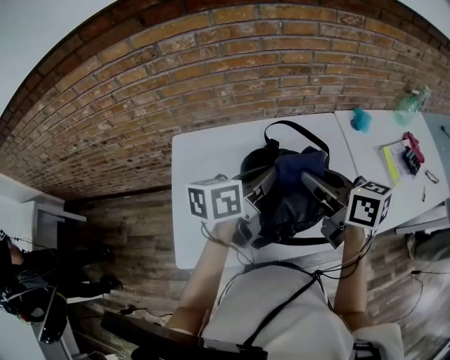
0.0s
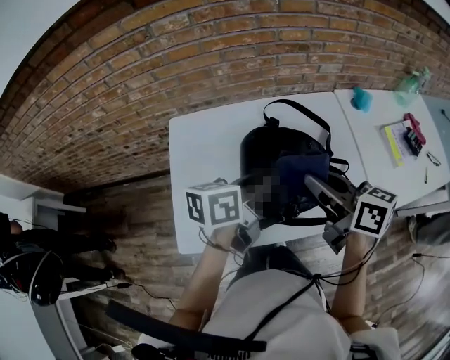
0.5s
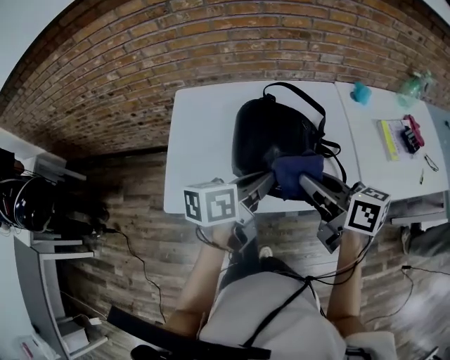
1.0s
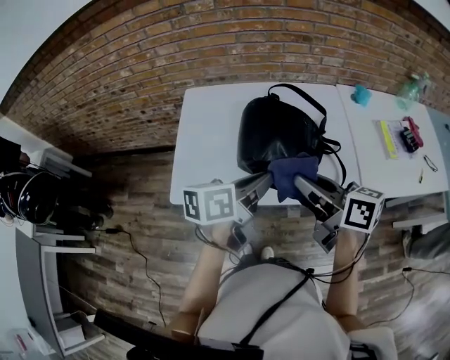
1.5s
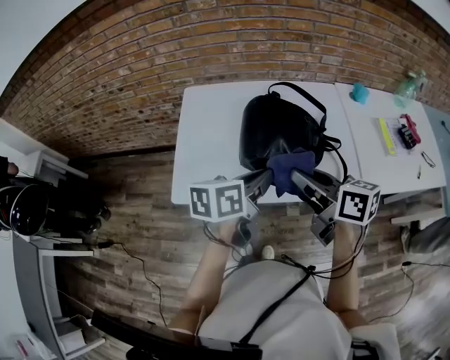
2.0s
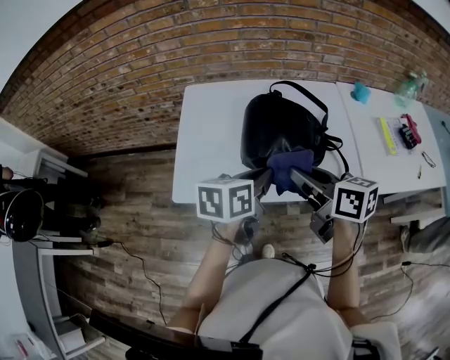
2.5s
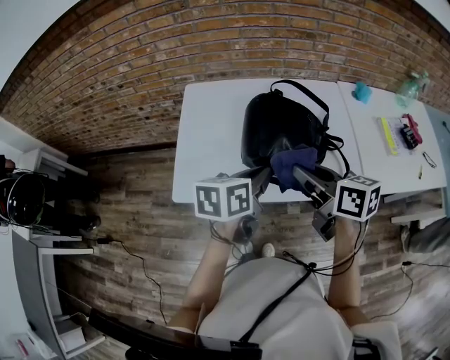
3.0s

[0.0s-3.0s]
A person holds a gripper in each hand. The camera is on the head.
0.0s to 1.5s: The two grippers go roughly 20 cm backward.
1.5s to 3.0s: There are only small adjustments of the grippers.

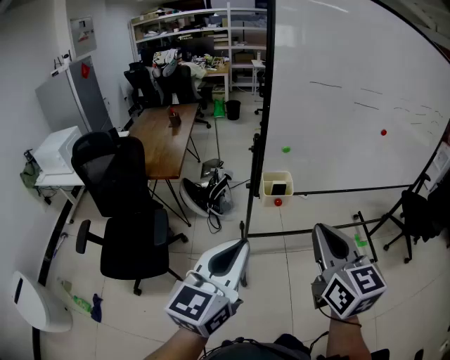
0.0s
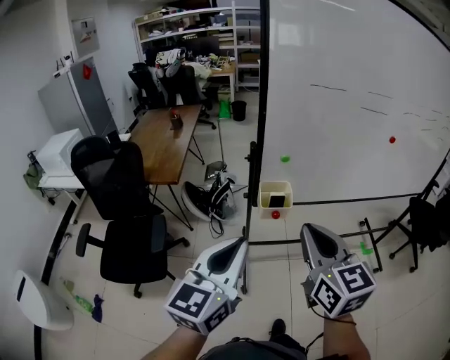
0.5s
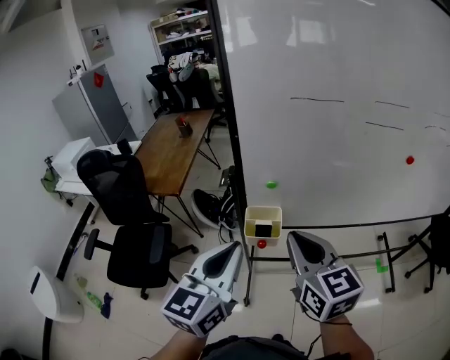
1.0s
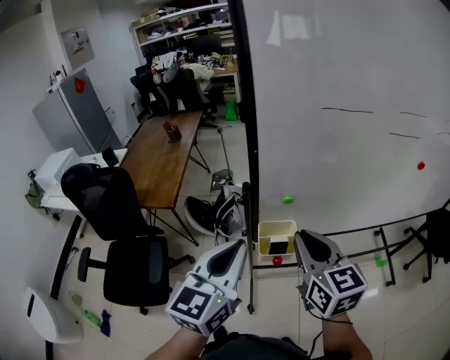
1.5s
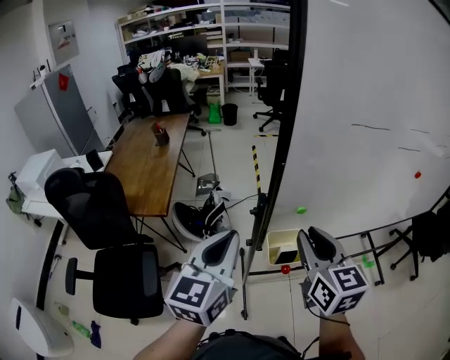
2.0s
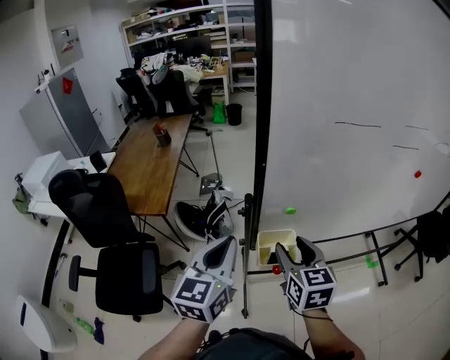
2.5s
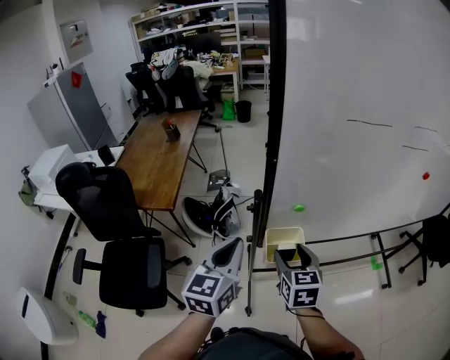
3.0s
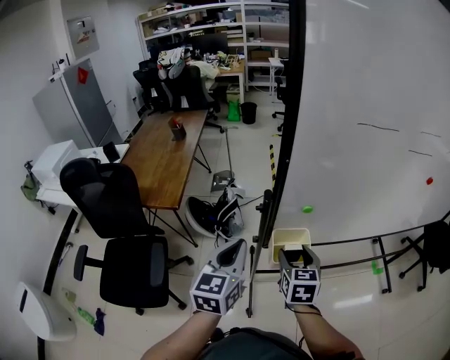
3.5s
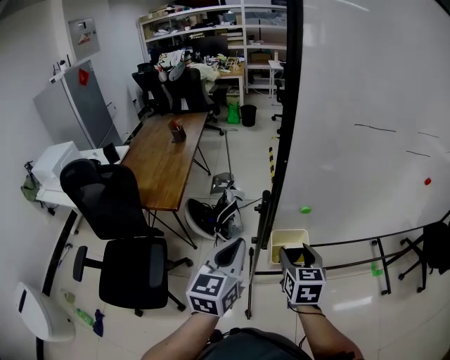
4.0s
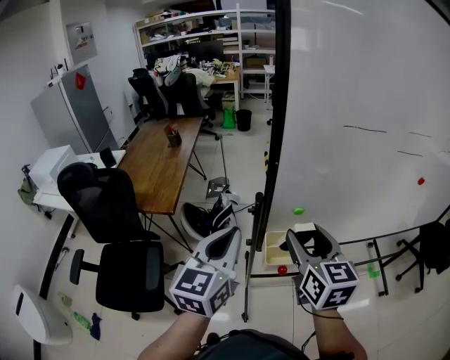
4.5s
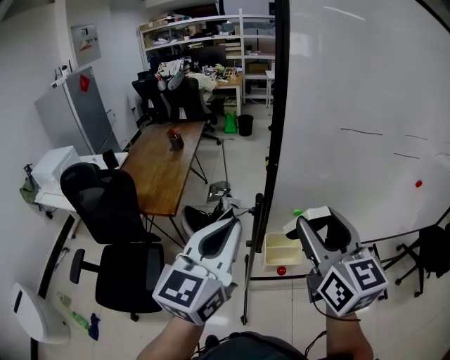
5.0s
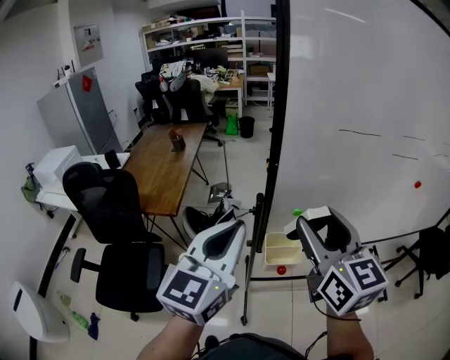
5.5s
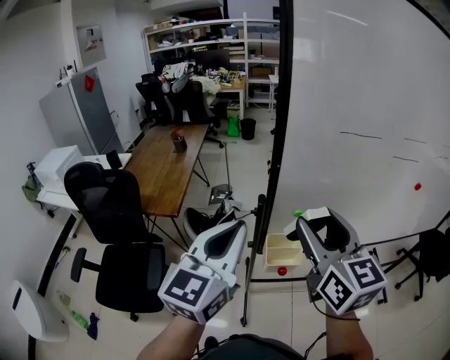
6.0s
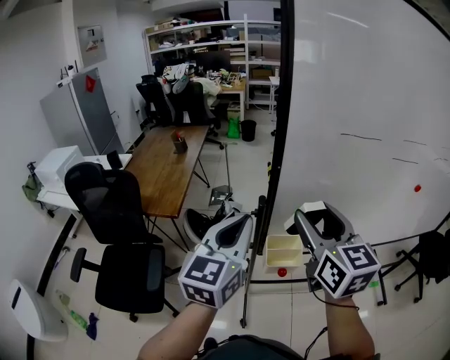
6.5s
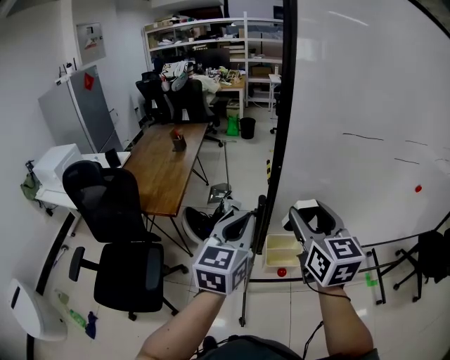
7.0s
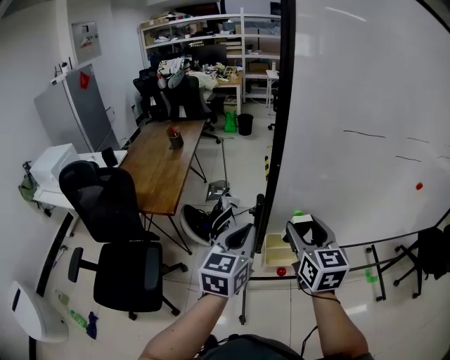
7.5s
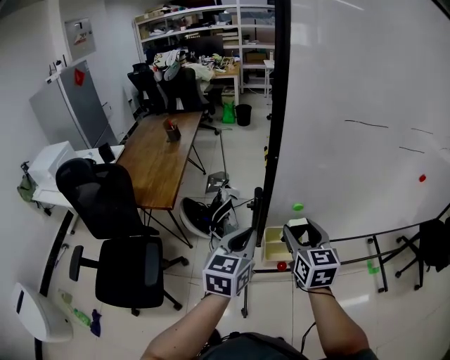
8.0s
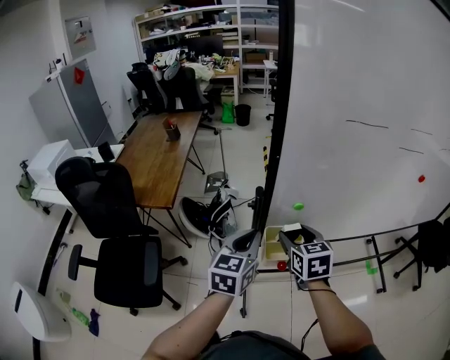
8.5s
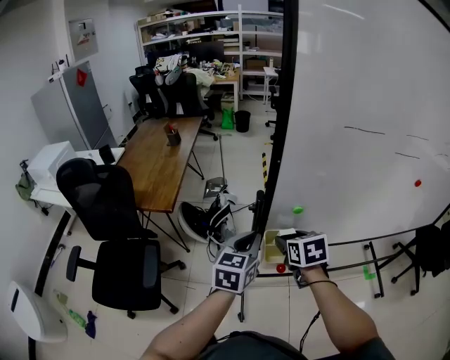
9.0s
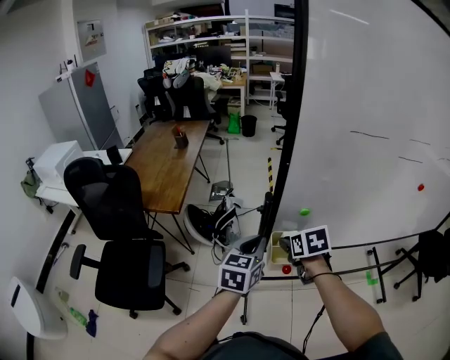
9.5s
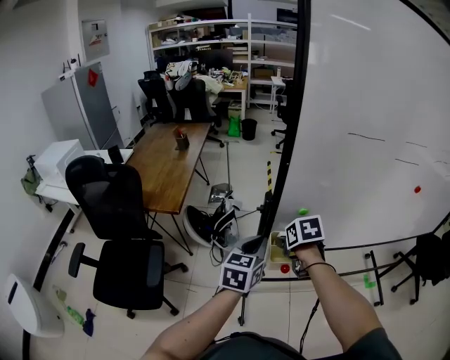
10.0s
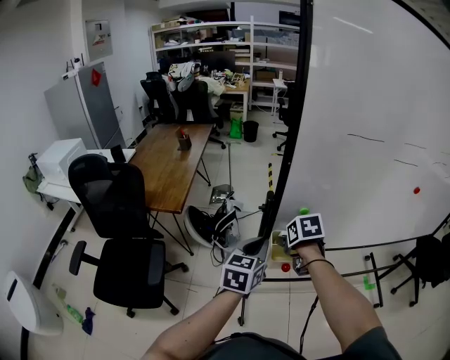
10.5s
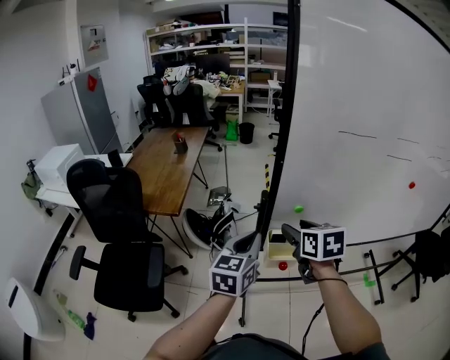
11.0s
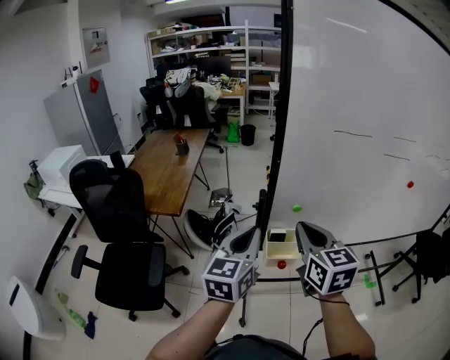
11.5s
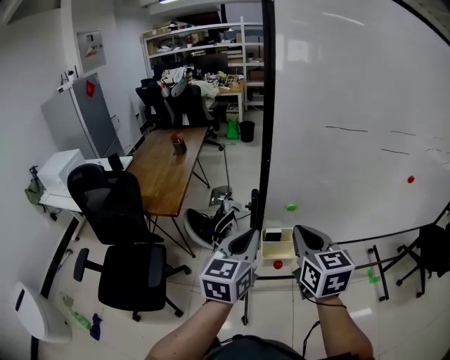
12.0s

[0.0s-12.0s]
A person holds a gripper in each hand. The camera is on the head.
0.0s to 2.0s: The two grippers travel together, forward, roughly 40 cm.
2.0s to 4.0s: The right gripper shifts about 15 cm downward, and opens. Meanwhile the left gripper moves downward, approximately 10 cm.
4.0s to 6.0s: The left gripper is displaced upward by some 15 cm. The right gripper is displaced upward by some 25 cm, and rotates approximately 30 degrees.
6.0s to 8.0s: Both grippers travel together downward and forward, about 20 cm.
8.0s to 10.0s: The right gripper shifts some 10 cm downward, and points its fingers approximately 40 degrees further downward.
10.0s to 12.0s: The right gripper shifts some 20 cm upward and backward, points its fingers approximately 40 degrees further upward, and closes. The left gripper is displaced upward and backward by about 10 cm.

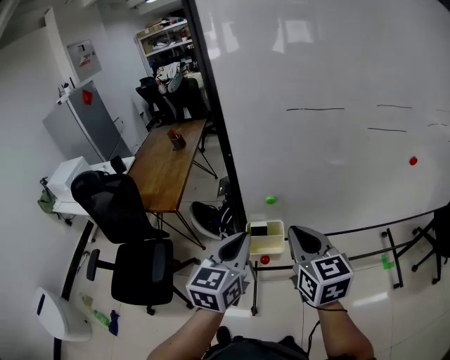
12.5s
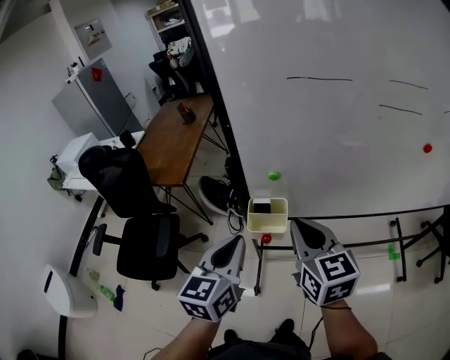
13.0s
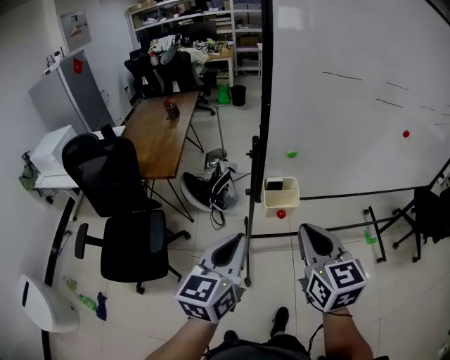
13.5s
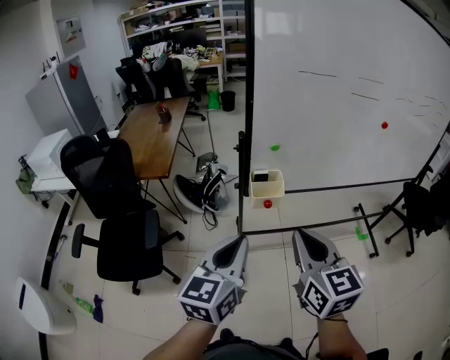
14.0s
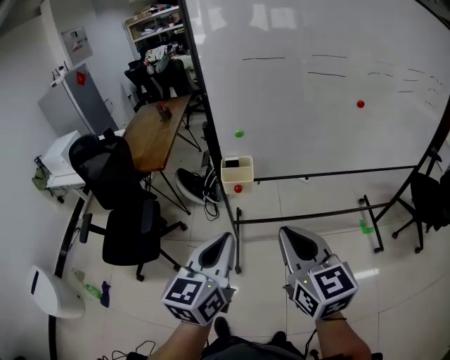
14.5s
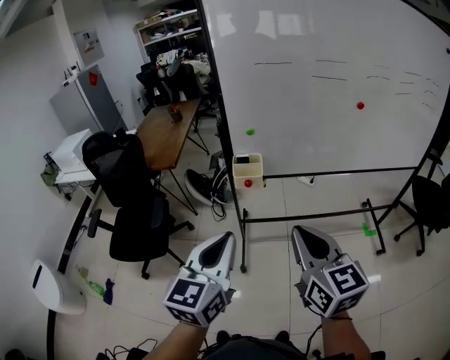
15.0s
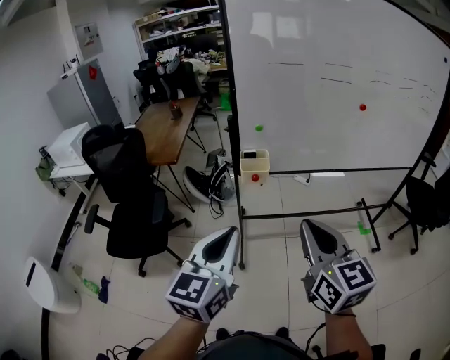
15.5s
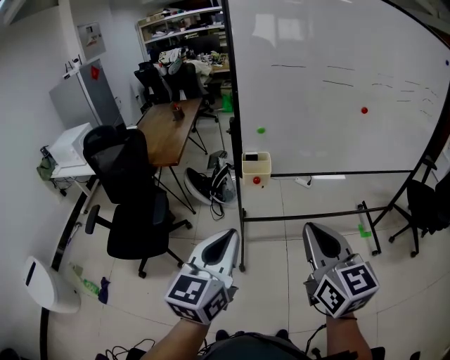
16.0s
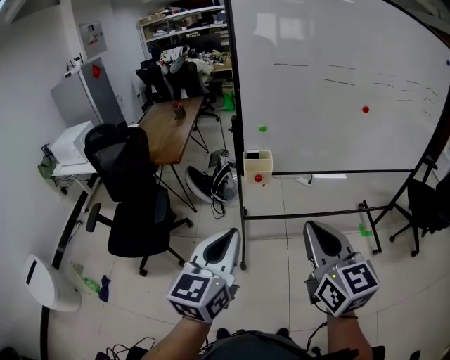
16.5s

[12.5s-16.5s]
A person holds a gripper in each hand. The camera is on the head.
12.5s to 14.5s: The grippers both shift backward by about 35 cm.
14.5s to 16.5s: Both grippers move backward and to the left, approximately 15 cm.

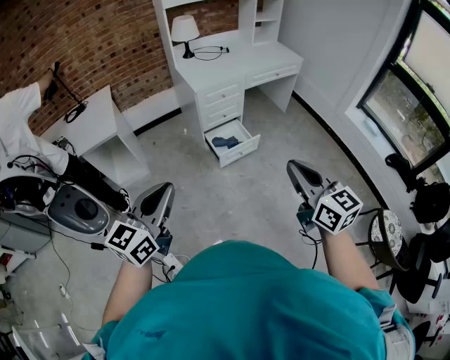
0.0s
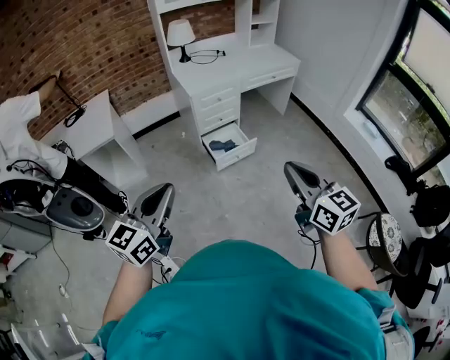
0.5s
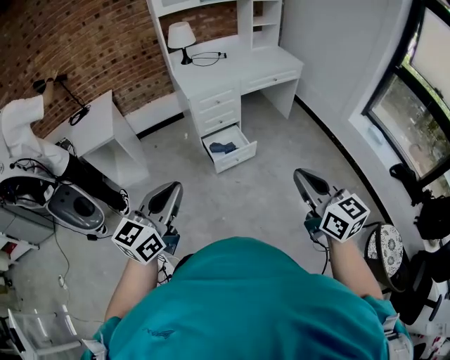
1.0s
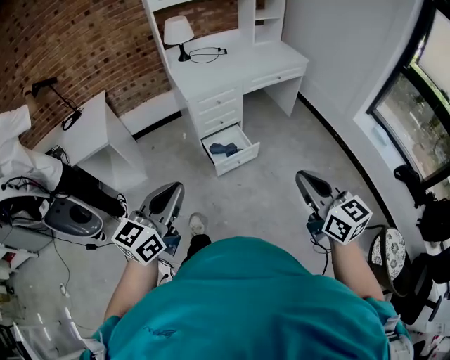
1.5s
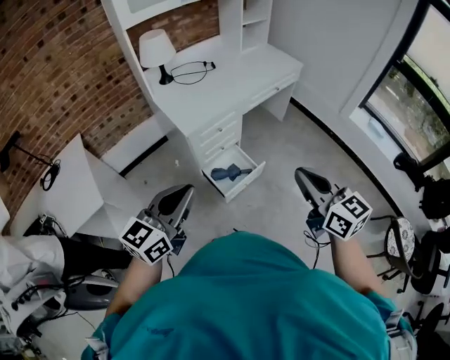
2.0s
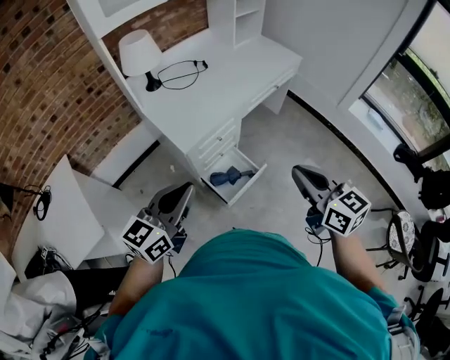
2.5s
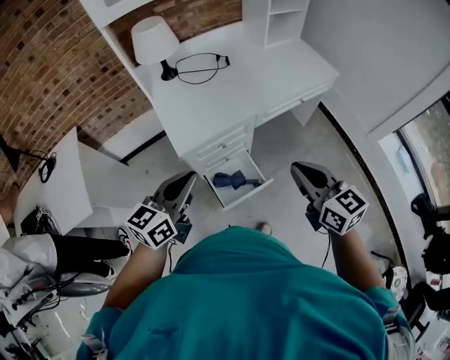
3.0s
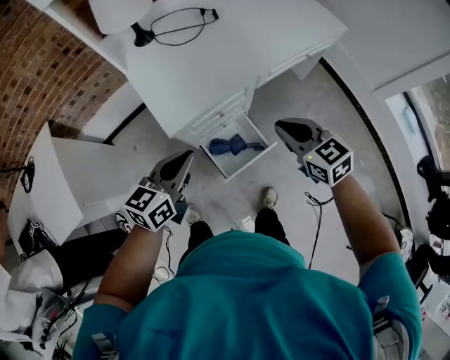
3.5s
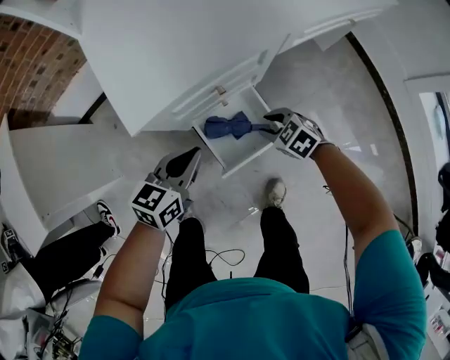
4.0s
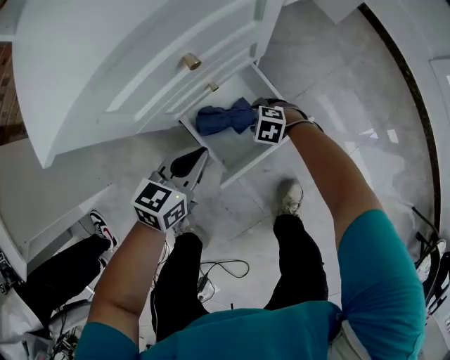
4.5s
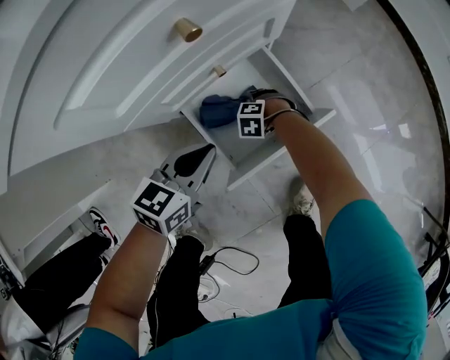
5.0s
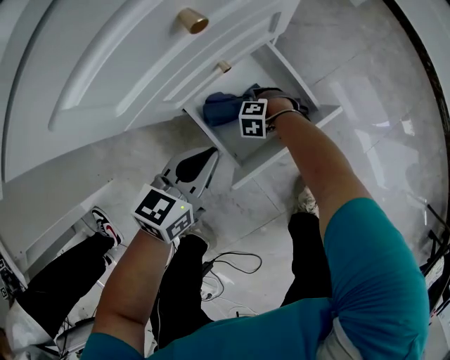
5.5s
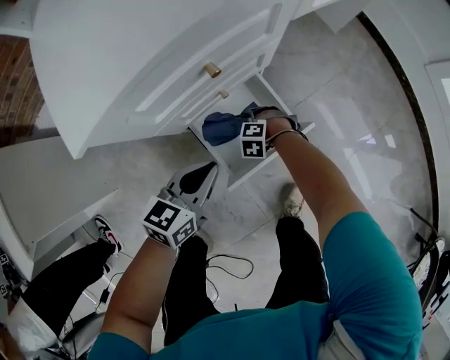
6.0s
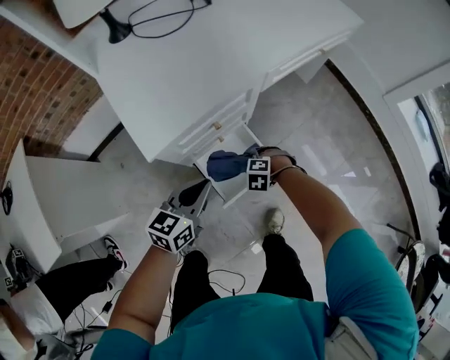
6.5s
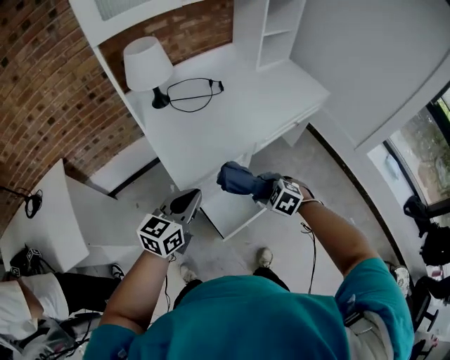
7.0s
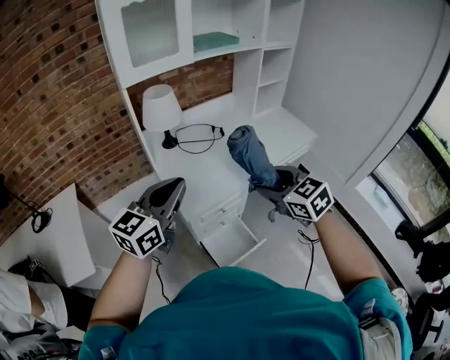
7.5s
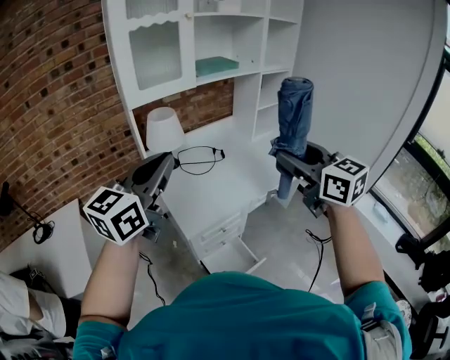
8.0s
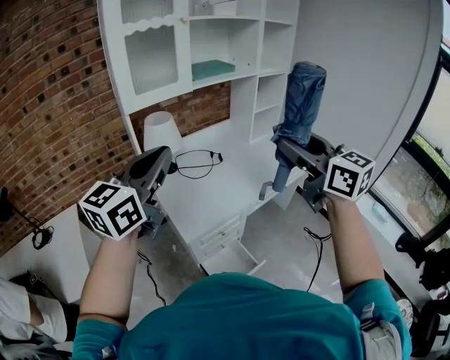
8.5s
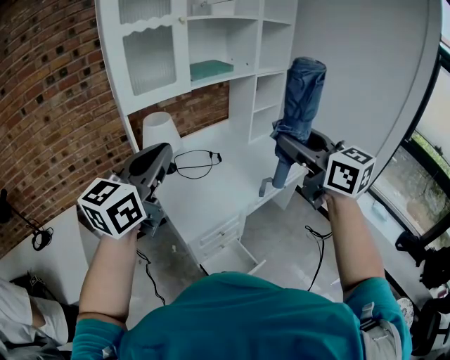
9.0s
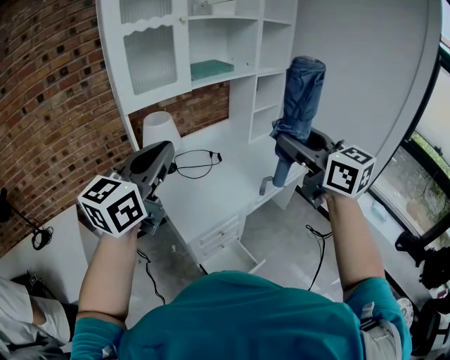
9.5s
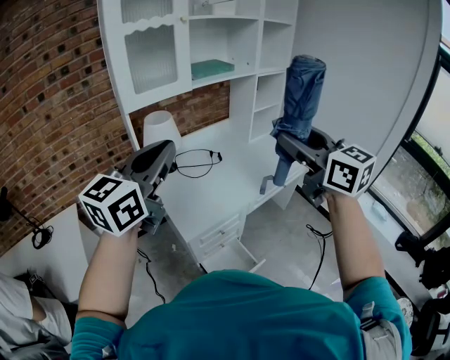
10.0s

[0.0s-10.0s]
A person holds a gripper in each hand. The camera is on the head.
0.0s to 2.0s: Both grippers move forward, some 35 cm.
2.0s to 4.0s: Both grippers move downward and forward, approximately 60 cm. The right gripper tips its fingers downward by approximately 50 degrees, and opens; the left gripper turns by about 30 degrees.
4.0s to 6.0s: The right gripper heads downward, covering approximately 25 cm, and swivels about 40 degrees. The left gripper moves downward, roughly 15 cm.
6.0s to 8.0s: The grippers both shift upward by some 90 cm. The left gripper tips its fingers upward by some 30 degrees. The right gripper points its fingers about 80 degrees further upward.
8.0s to 10.0s: The right gripper moves upward, roughly 5 cm.
